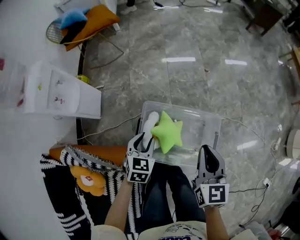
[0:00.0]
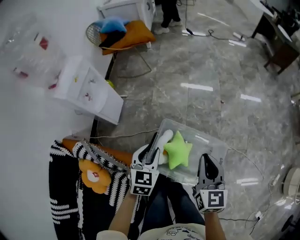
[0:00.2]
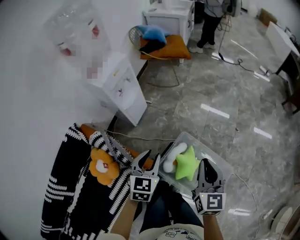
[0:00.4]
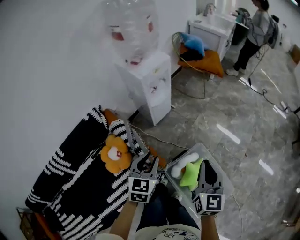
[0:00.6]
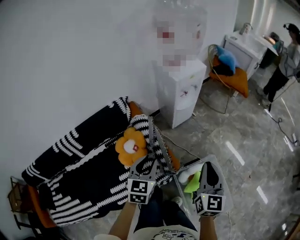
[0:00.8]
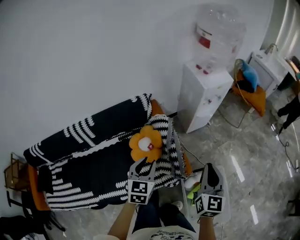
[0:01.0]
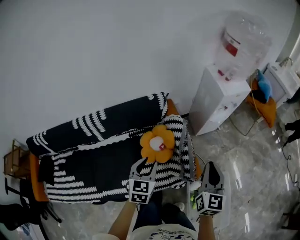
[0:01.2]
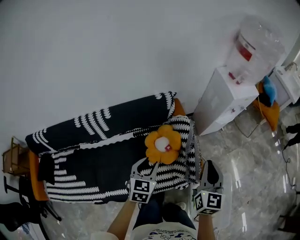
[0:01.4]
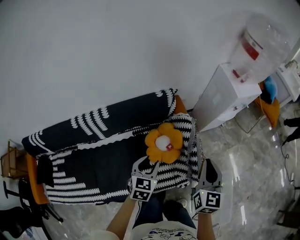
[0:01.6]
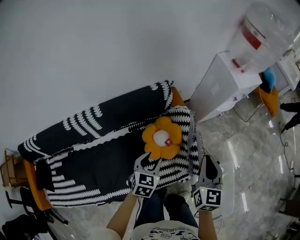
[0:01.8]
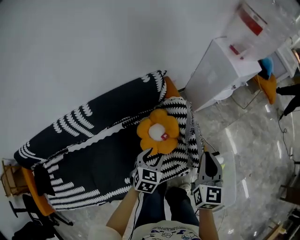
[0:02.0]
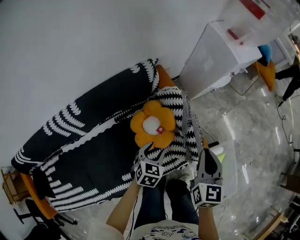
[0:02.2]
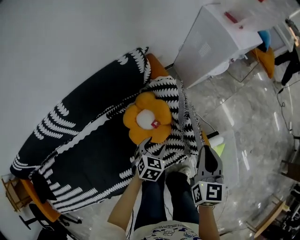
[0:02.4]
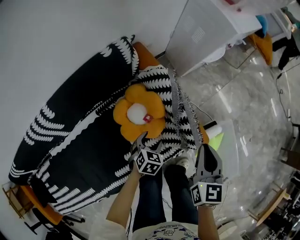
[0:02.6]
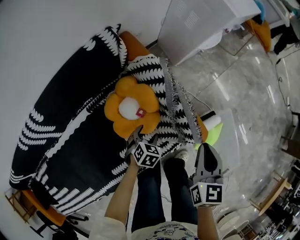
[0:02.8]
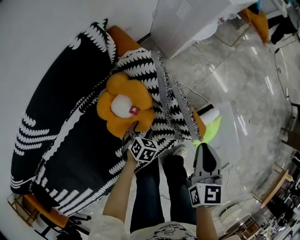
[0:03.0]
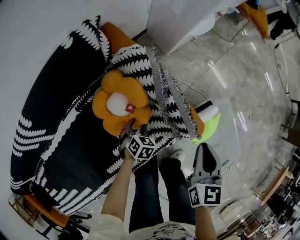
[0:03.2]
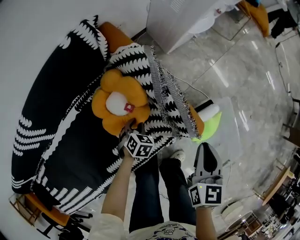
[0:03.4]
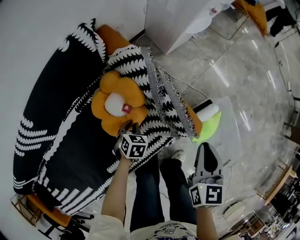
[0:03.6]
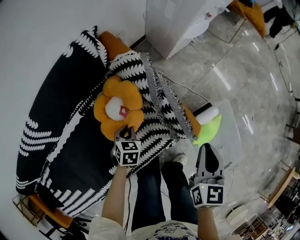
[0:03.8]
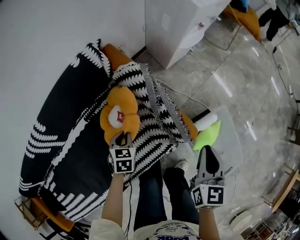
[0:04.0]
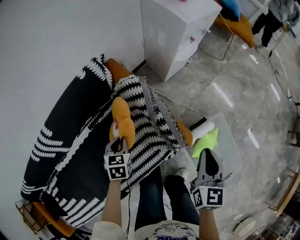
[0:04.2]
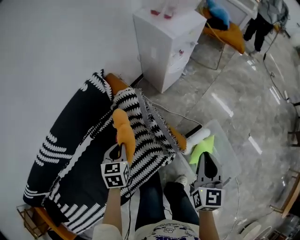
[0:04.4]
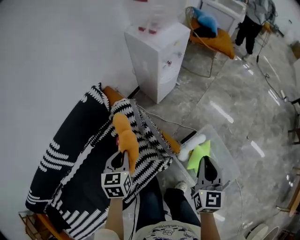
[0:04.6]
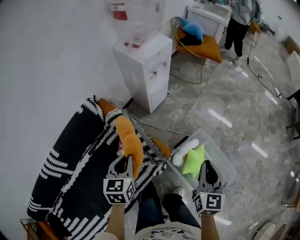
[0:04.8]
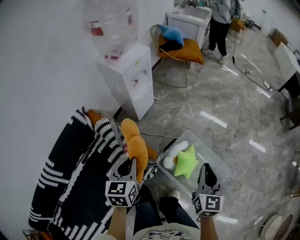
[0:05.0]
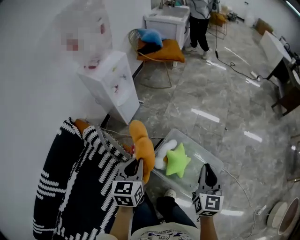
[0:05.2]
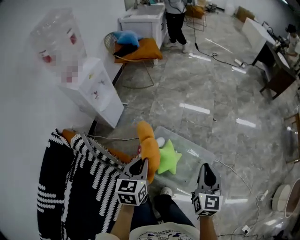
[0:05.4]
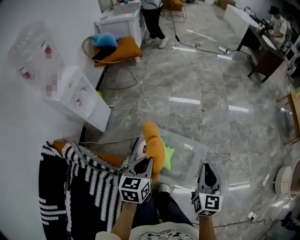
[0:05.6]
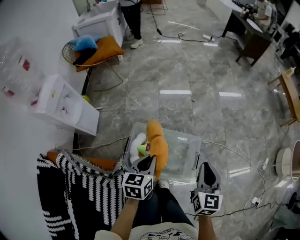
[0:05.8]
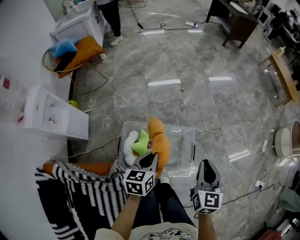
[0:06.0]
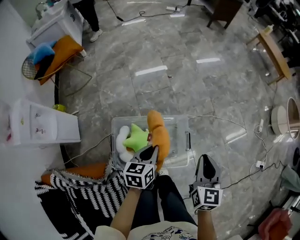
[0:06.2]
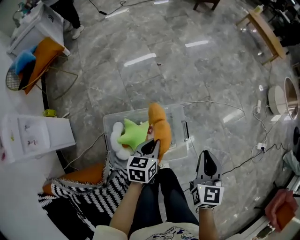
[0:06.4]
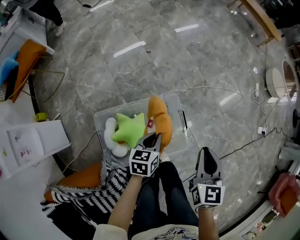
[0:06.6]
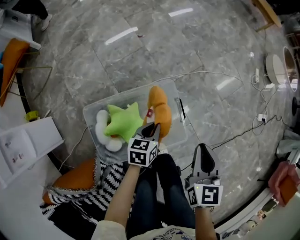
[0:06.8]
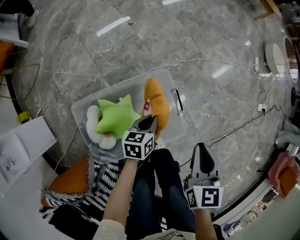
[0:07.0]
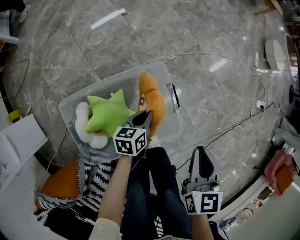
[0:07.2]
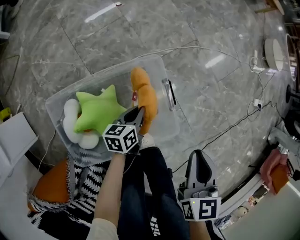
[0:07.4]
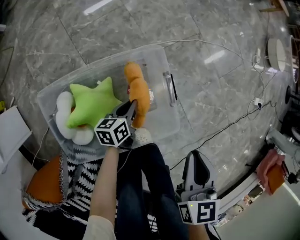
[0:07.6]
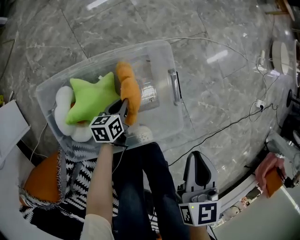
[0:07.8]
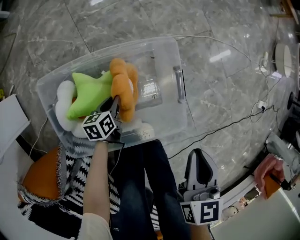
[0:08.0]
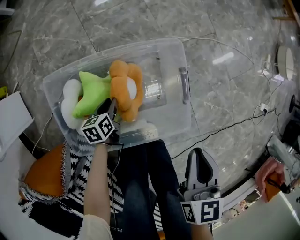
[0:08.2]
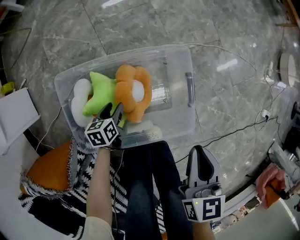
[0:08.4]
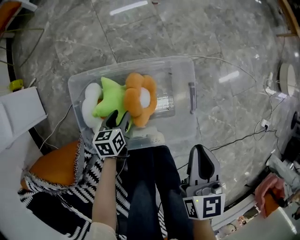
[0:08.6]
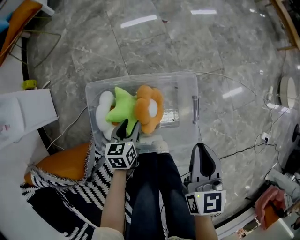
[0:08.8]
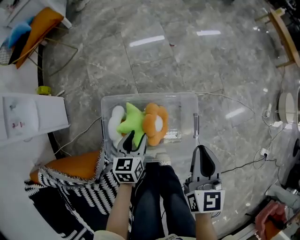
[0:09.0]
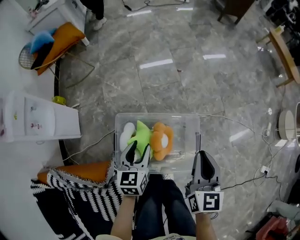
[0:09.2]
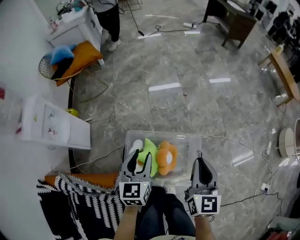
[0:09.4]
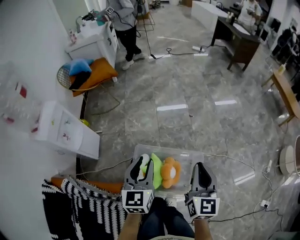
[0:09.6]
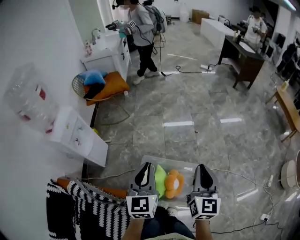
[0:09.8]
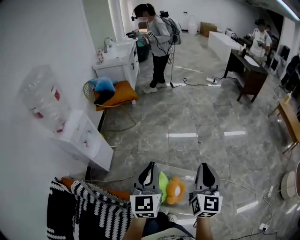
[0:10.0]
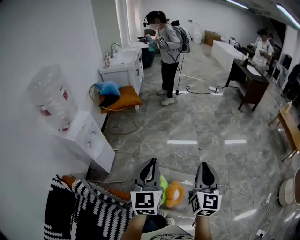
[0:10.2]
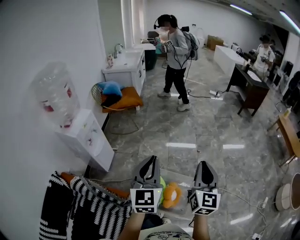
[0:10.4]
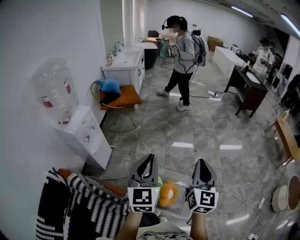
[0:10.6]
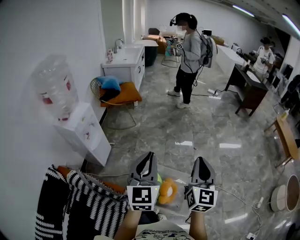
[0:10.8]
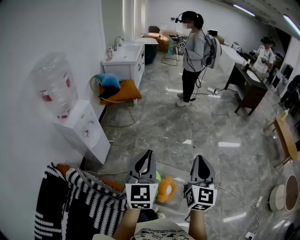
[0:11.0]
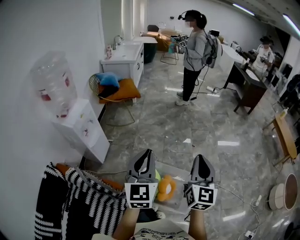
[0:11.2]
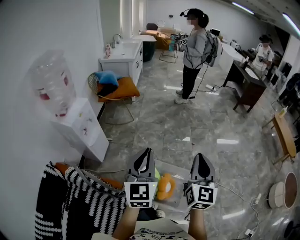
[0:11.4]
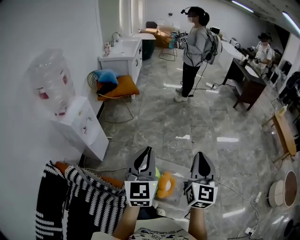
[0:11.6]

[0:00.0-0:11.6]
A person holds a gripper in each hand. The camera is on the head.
0:00.0 to 0:01.4: Both grippers are carried some 60 cm. The left gripper rotates roughly 80 degrees; the right gripper turns by approximately 70 degrees.
0:01.4 to 0:02.8: The right gripper travels downward by some 25 cm, and turns by about 30 degrees, while the left gripper heads downward, covering about 40 cm, tilts its fingers roughly 30 degrees downward, and opens up.
0:02.8 to 0:04.4: The right gripper shifts some 20 cm to the right and upward, while the left gripper heads upward, covering roughly 25 cm, rotates roughly 30 degrees, and closes.
0:04.4 to 0:05.8: Both grippers are carried some 60 cm. The left gripper rotates roughly 60 degrees, while the right gripper changes its angle by approximately 50 degrees.
0:05.8 to 0:07.2: The right gripper travels downward by about 30 cm, and changes its angle by about 40 degrees. Meanwhile the left gripper moves downward, about 40 cm, and swivels some 40 degrees.
0:07.2 to 0:08.8: The left gripper reaches roughly 20 cm downward, then returns, rotates about 30 degrees, and opens, while the right gripper reaches roughly 10 cm downward, then returns.
0:08.8 to 0:10.2: The two grippers go some 60 cm upward. The right gripper angles its fingers upward, by roughly 30 degrees, while the left gripper tips its fingers upward by approximately 40 degrees, and closes up.
0:10.2 to 0:11.6: There are only small adjustments of the grippers.

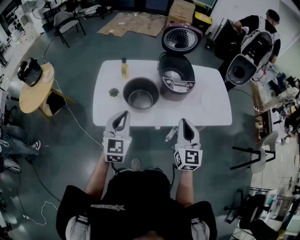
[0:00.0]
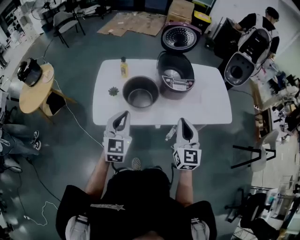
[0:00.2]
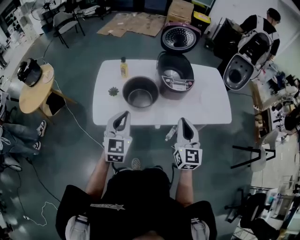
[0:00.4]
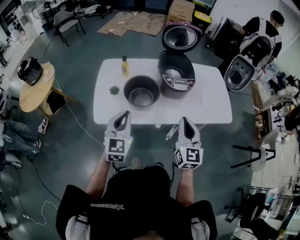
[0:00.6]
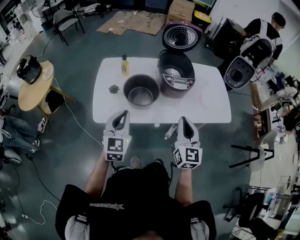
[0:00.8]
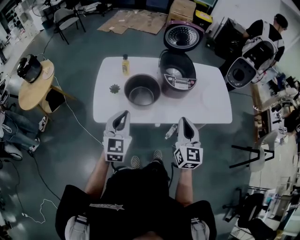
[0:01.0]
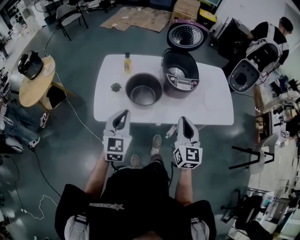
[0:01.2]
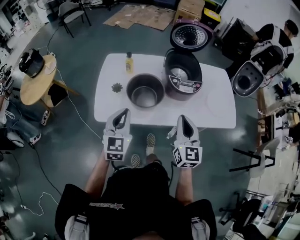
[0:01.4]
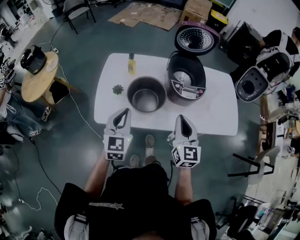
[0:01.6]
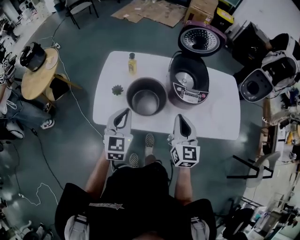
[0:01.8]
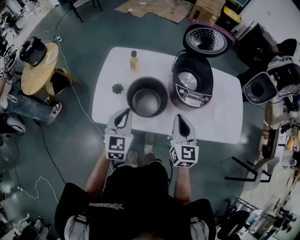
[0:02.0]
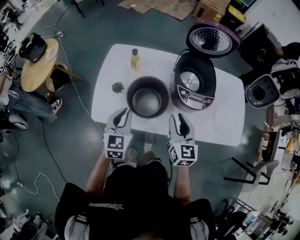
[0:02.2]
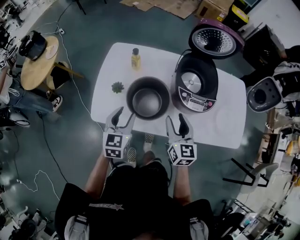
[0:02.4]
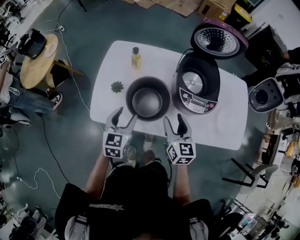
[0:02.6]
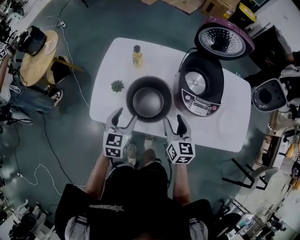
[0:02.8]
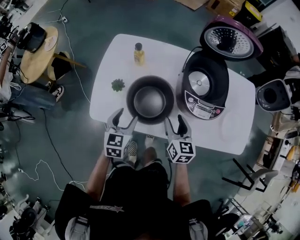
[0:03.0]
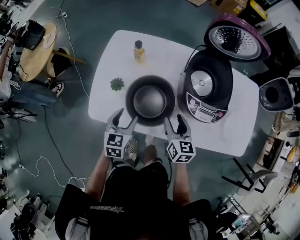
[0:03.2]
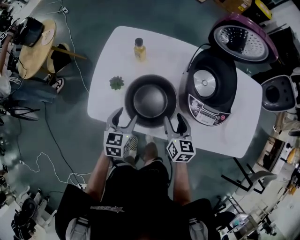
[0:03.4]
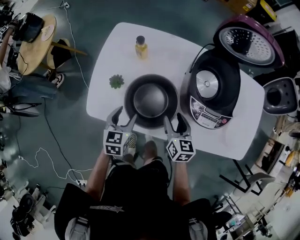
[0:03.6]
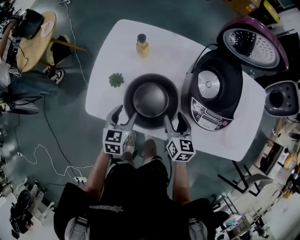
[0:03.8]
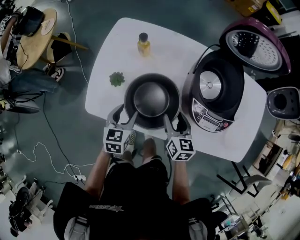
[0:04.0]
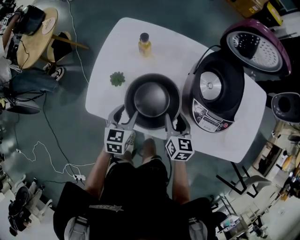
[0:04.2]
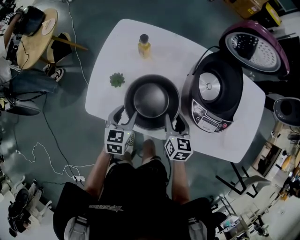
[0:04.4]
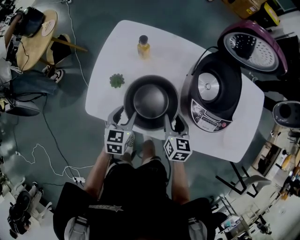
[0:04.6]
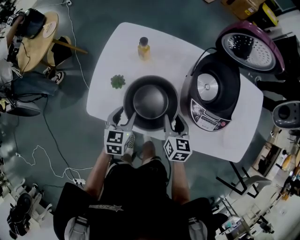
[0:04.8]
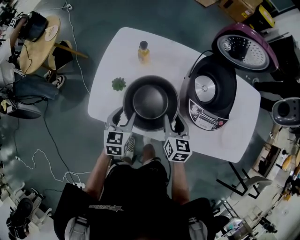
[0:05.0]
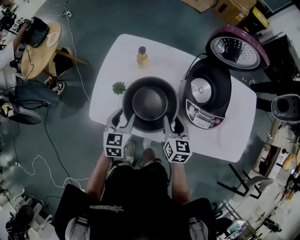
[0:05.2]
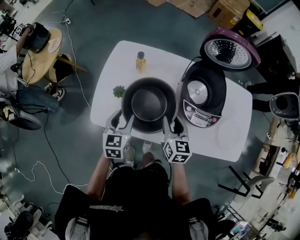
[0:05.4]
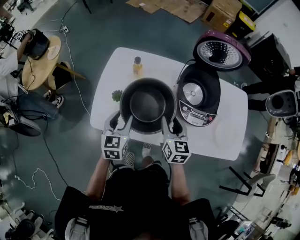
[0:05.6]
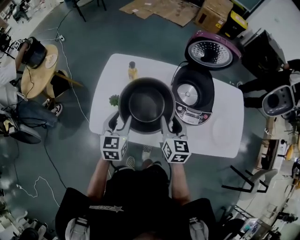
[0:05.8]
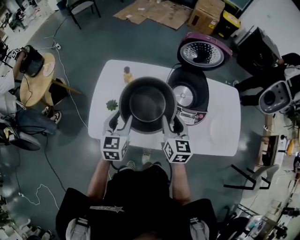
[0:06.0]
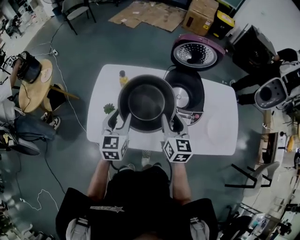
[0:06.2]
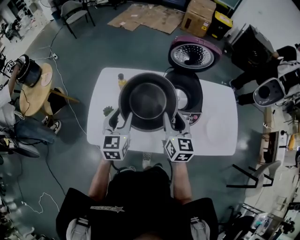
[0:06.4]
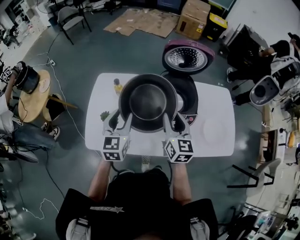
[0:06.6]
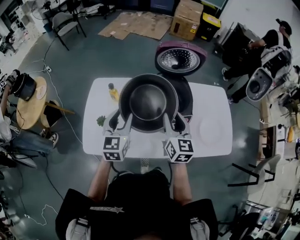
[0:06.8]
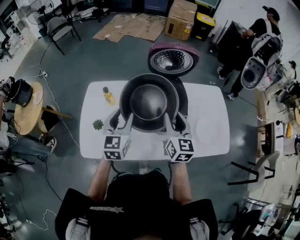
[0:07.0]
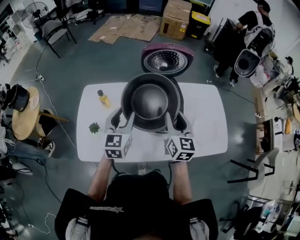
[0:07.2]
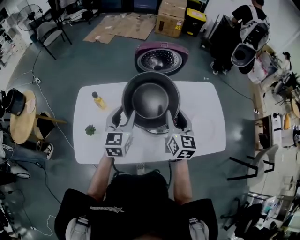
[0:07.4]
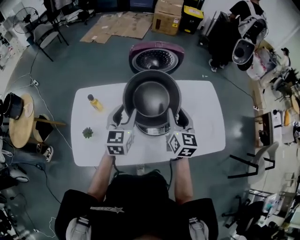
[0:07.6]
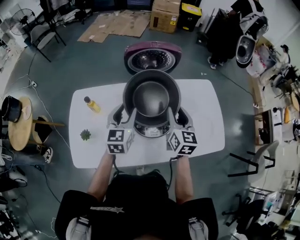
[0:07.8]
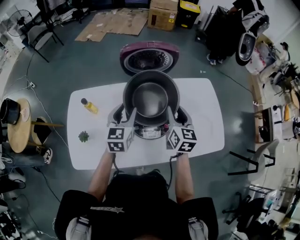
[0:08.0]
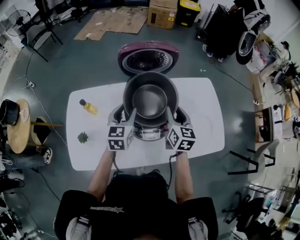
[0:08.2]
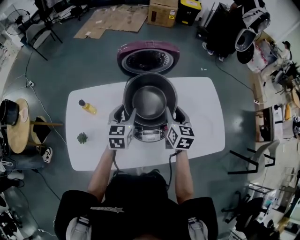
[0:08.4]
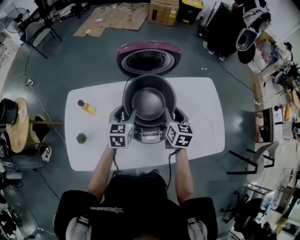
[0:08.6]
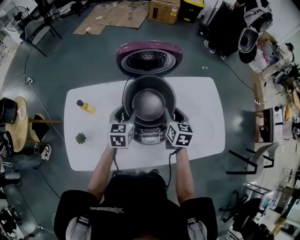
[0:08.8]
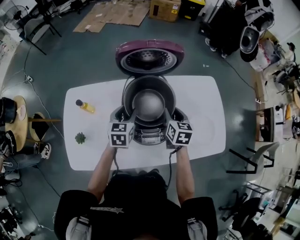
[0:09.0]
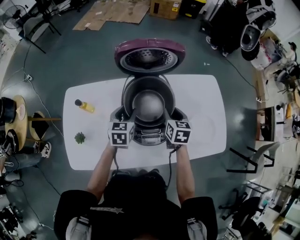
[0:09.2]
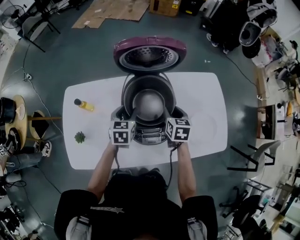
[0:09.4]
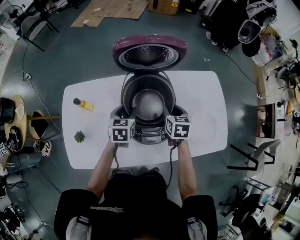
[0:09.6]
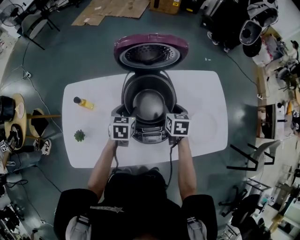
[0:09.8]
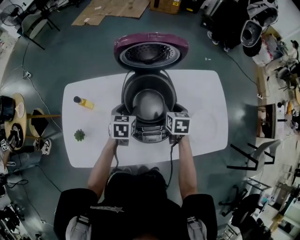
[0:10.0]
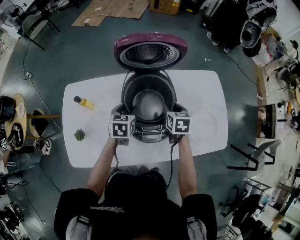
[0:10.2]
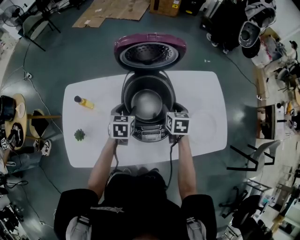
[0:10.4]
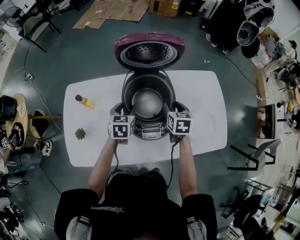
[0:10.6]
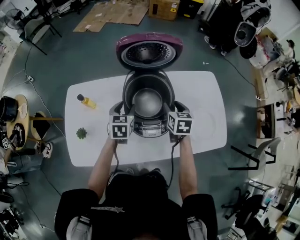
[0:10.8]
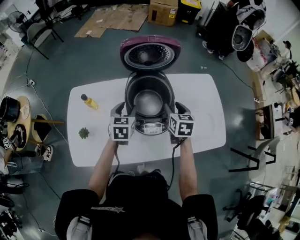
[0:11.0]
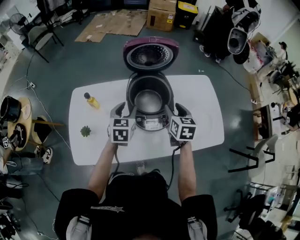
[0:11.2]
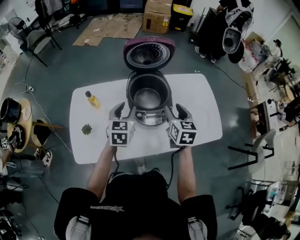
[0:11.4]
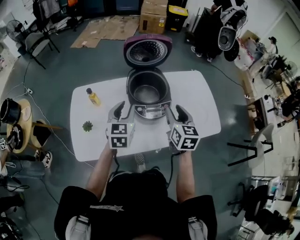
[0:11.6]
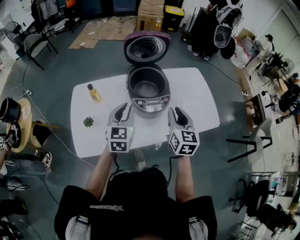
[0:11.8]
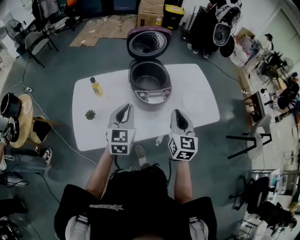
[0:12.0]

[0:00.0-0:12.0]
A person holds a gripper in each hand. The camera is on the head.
0:00.0 to 0:01.6: The right gripper heads forward, covering approximately 10 cm. The left gripper moves approximately 5 cm.
0:01.6 to 0:03.0: Both grippers move downward and forward, roughly 20 cm. The right gripper swivels about 30 degrees, and opens up; the left gripper swivels some 20 degrees, and opens.
0:03.0 to 0:04.4: Both grippers travel together downward, some 5 cm.
0:04.4 to 0:06.0: Both grippers move upward, roughly 15 cm. The right gripper rotates some 20 degrees.
0:06.0 to 0:07.6: Both grippers travel together to the right and forward, roughly 20 cm.
0:07.6 to 0:09.0: The two grippers go approximately 15 cm downward and forward. The right gripper turns by some 20 degrees.
0:09.0 to 0:10.4: The grippers make only small movements.
0:10.4 to 0:12.0: The two grippers go approximately 35 cm backward and upward. The left gripper tips its fingers upward by some 30 degrees, and closes. Meanwhile the right gripper tips its fingers upward by approximately 30 degrees, and closes up.
